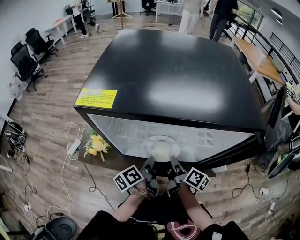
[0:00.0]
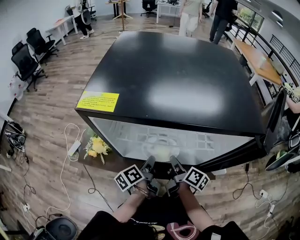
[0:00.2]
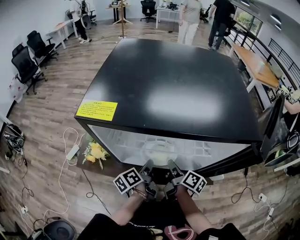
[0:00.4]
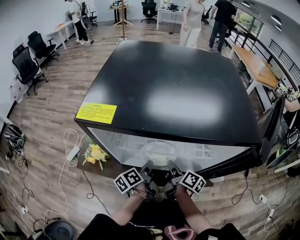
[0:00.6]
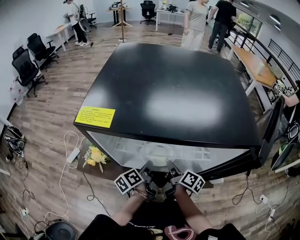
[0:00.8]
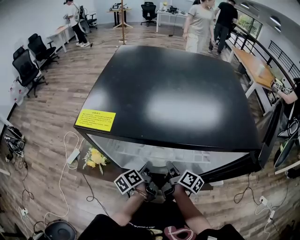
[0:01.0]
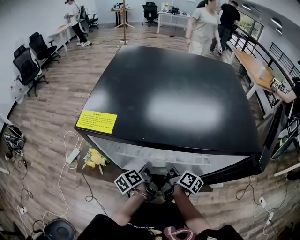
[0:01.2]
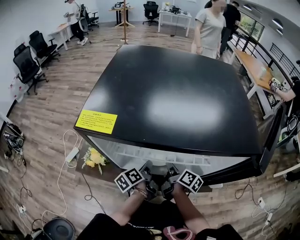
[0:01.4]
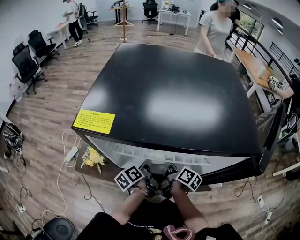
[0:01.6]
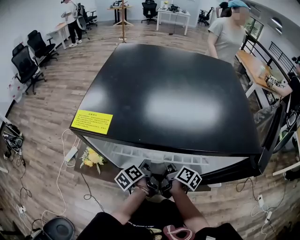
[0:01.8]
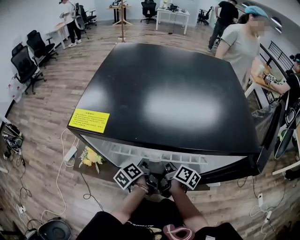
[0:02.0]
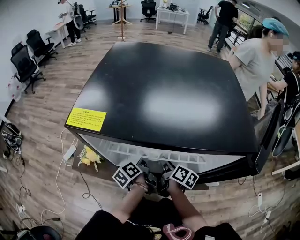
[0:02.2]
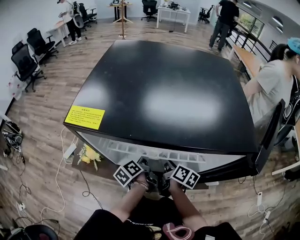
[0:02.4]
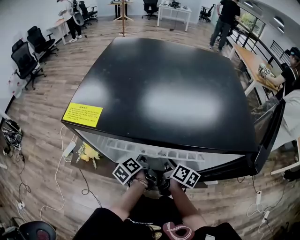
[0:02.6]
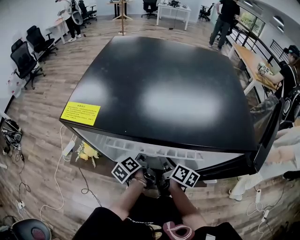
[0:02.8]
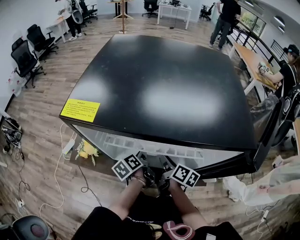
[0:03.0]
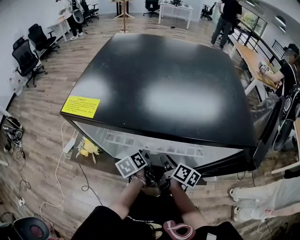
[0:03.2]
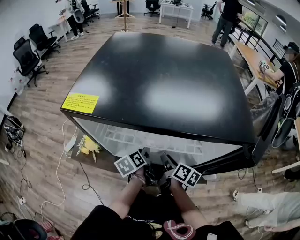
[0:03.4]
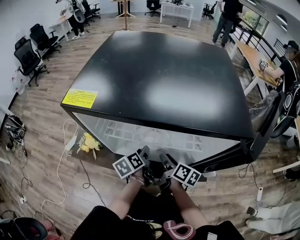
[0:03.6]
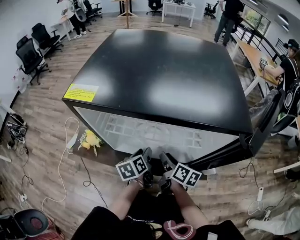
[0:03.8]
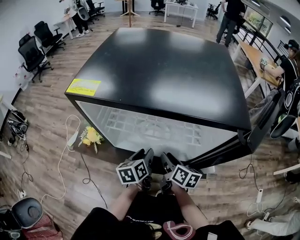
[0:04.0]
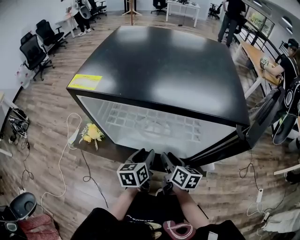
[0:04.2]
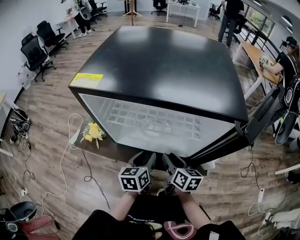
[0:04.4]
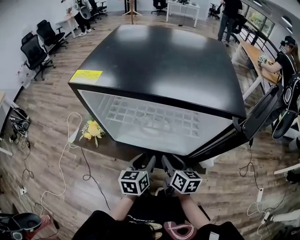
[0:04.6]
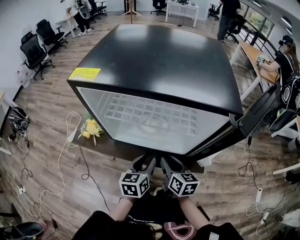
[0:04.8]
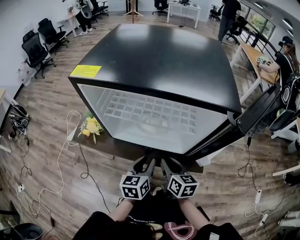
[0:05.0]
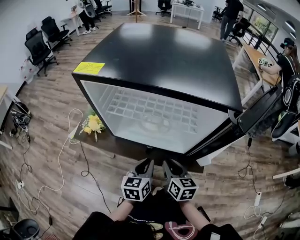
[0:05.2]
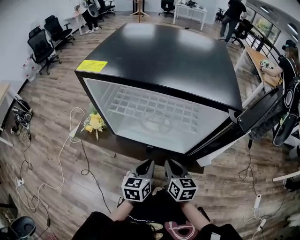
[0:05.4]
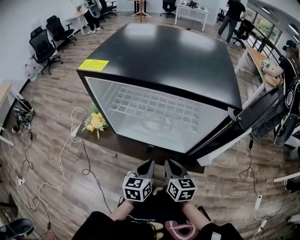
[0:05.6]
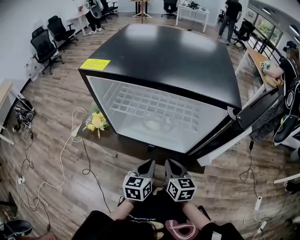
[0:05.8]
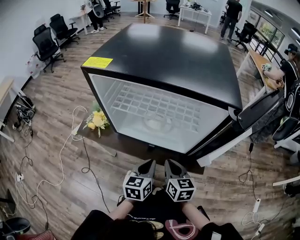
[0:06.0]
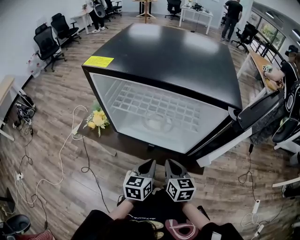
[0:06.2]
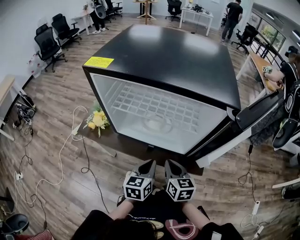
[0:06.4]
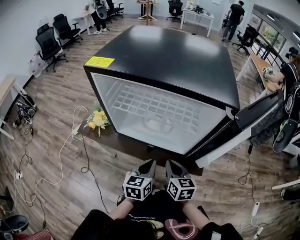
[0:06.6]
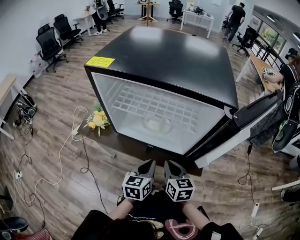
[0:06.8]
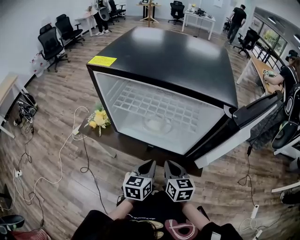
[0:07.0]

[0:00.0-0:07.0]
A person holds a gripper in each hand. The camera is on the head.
0:00.0 to 0:01.4: Both grippers move forward, approximately 5 cm.
0:01.4 to 0:02.8: The right gripper opens up.
0:02.8 to 0:04.2: The right gripper is displaced backward by approximately 5 cm. The left gripper goes about 10 cm backward and upward, rolls clockwise, seen from behind, by some 40 degrees, and opens its fingers.
0:04.2 to 0:05.6: The grippers both shift backward by about 10 cm. The left gripper closes up; the right gripper rotates approximately 20 degrees, and closes.
0:05.6 to 0:07.0: There are only small adjustments of the grippers.

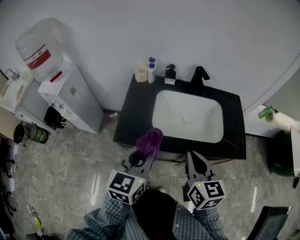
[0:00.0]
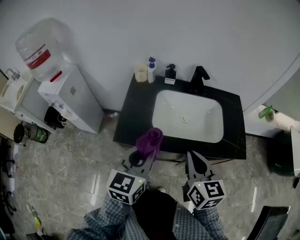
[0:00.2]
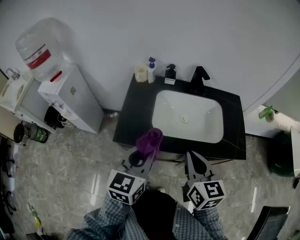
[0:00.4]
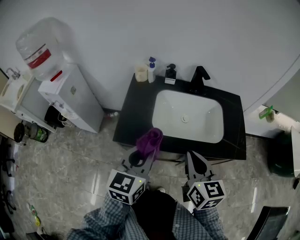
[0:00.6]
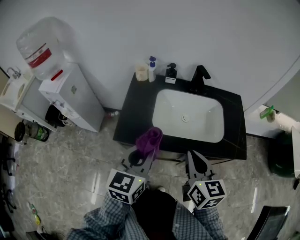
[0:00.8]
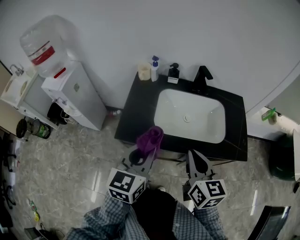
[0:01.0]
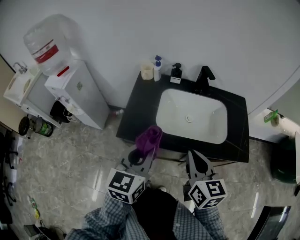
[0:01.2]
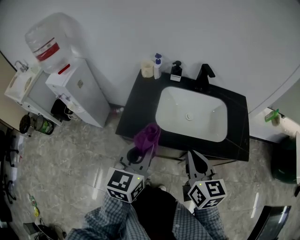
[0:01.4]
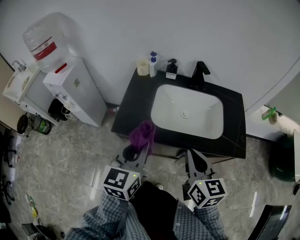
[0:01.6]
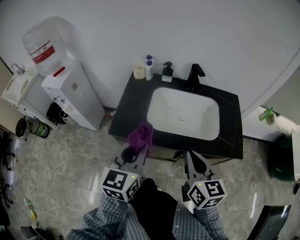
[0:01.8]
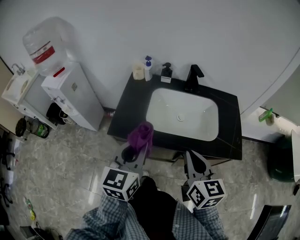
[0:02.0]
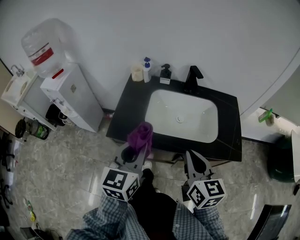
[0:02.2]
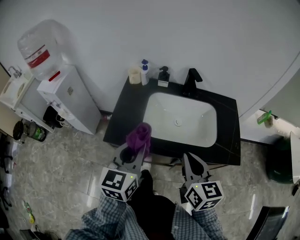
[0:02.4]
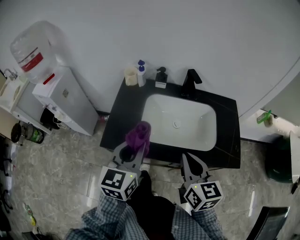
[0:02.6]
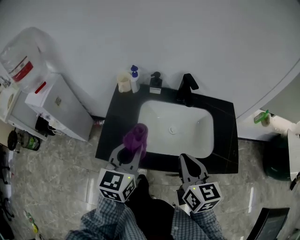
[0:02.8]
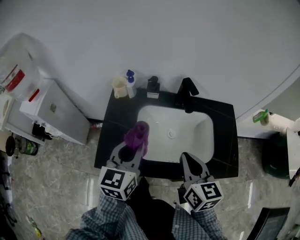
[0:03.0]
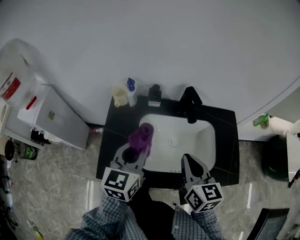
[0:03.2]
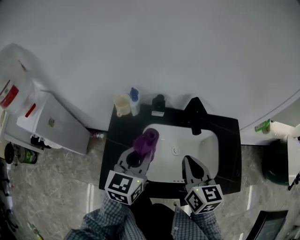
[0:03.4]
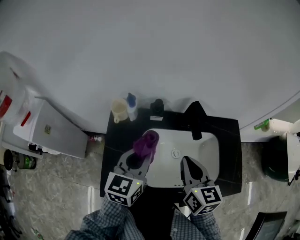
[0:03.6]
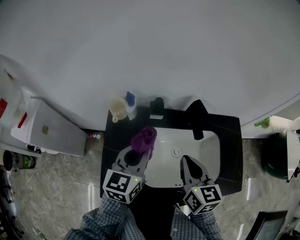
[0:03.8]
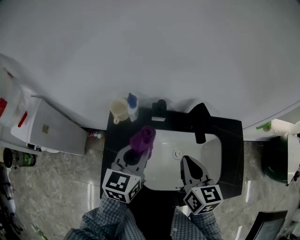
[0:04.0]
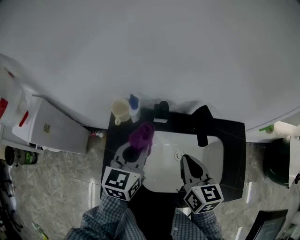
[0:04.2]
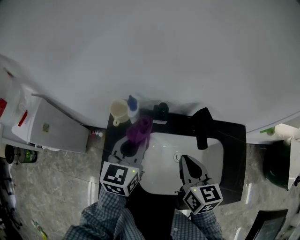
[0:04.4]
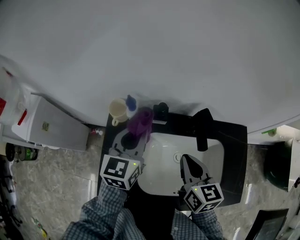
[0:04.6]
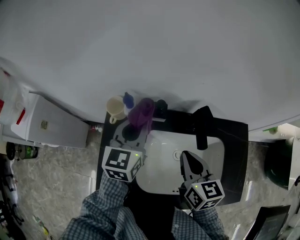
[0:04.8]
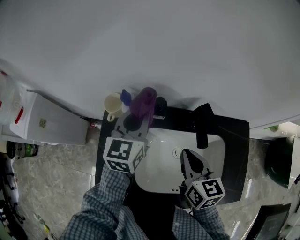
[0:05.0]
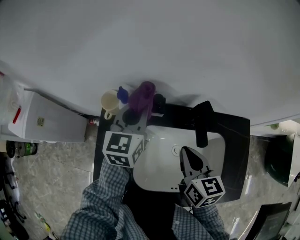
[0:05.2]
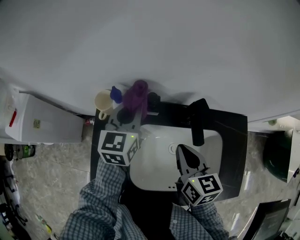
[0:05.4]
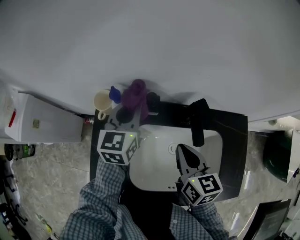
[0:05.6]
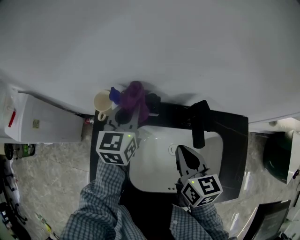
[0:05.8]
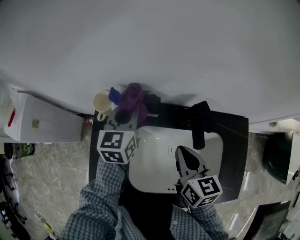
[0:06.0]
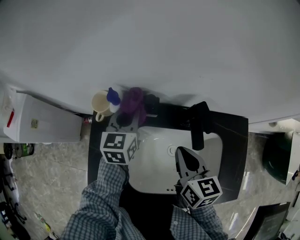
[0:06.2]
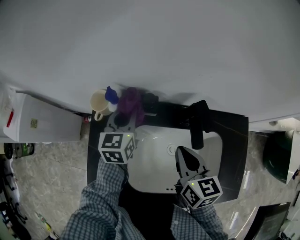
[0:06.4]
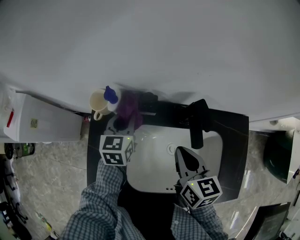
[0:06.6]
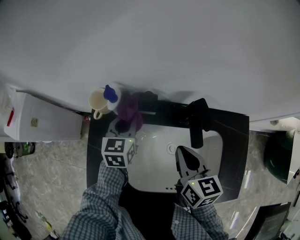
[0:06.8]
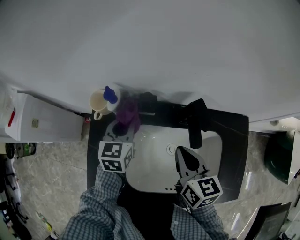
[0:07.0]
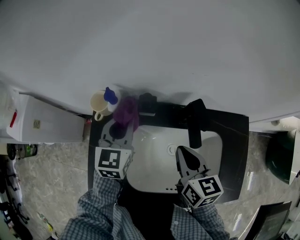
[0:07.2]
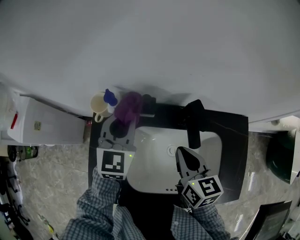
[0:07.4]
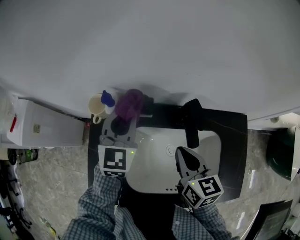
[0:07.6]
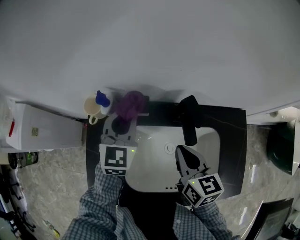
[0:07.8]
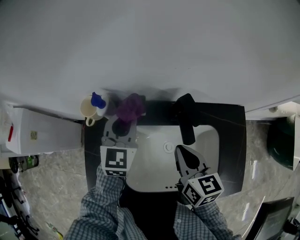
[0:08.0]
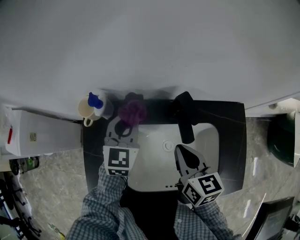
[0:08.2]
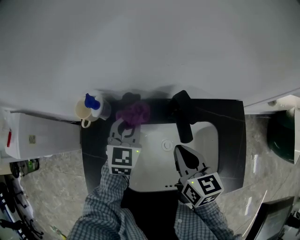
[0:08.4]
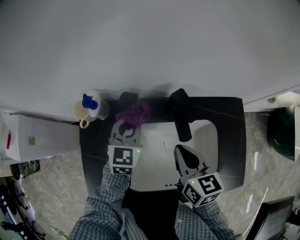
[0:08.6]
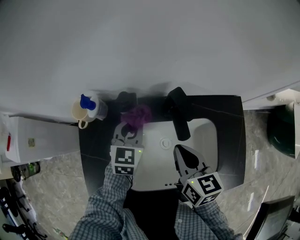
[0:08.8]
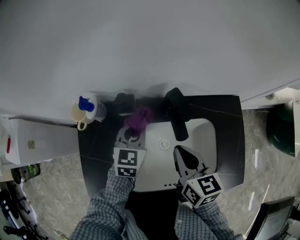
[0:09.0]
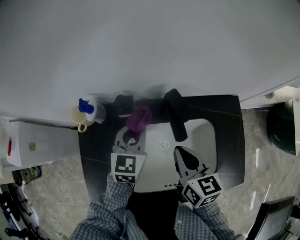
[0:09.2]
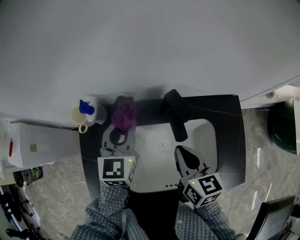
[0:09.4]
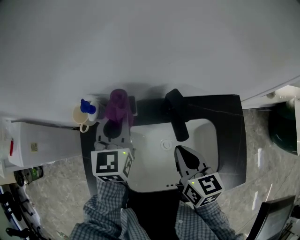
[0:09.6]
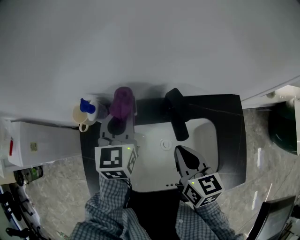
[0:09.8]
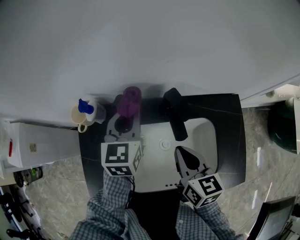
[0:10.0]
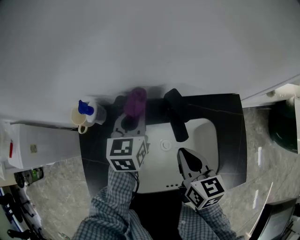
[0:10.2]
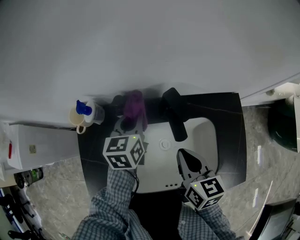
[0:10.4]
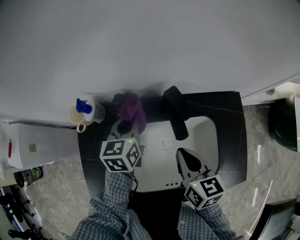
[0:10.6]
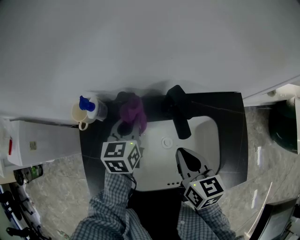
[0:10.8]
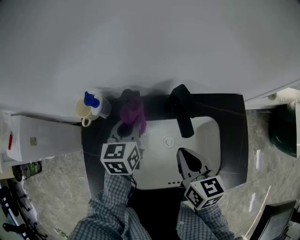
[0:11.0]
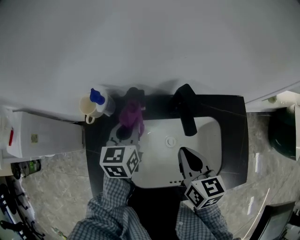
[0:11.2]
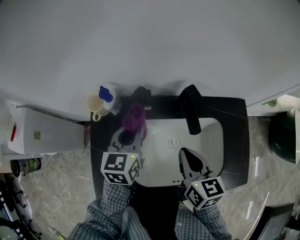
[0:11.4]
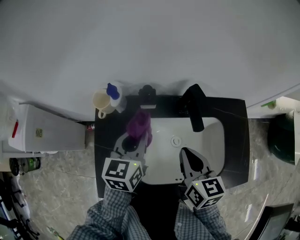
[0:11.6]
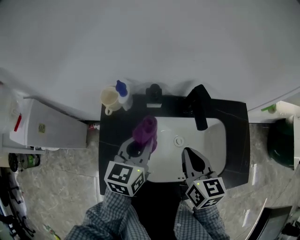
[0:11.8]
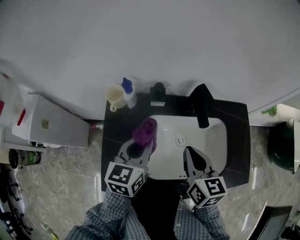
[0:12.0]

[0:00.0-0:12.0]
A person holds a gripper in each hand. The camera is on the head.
0:00.0 to 0:01.6: The grippers make only small movements.
0:01.6 to 0:03.0: Both grippers travel together forward, some 15 cm.
0:03.0 to 0:04.4: The two grippers go approximately 20 cm forward.
0:04.4 to 0:06.0: The right gripper shifts by roughly 5 cm. Meanwhile the left gripper moves forward and downward, some 15 cm.
0:06.0 to 0:07.6: The left gripper moves some 5 cm, and turns by some 20 degrees.
0:07.6 to 0:09.0: The left gripper travels downward and to the right by approximately 15 cm.
0:09.0 to 0:10.4: The left gripper moves approximately 10 cm upward and comes back.
0:10.4 to 0:12.0: The right gripper is displaced to the left and backward by roughly 10 cm. Meanwhile the left gripper shifts roughly 20 cm backward and to the left.

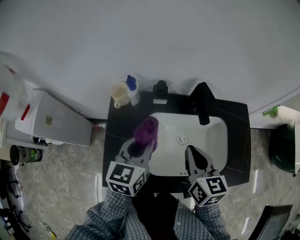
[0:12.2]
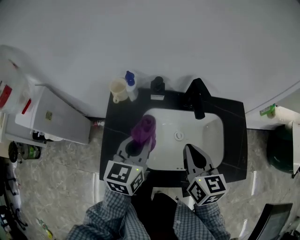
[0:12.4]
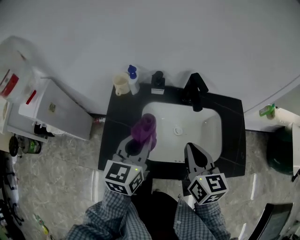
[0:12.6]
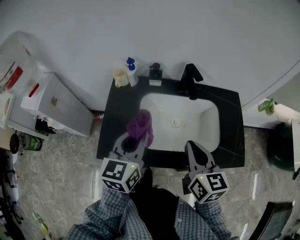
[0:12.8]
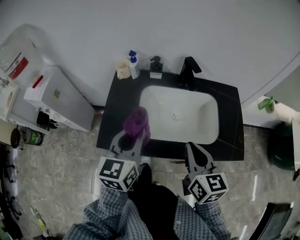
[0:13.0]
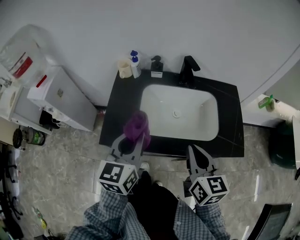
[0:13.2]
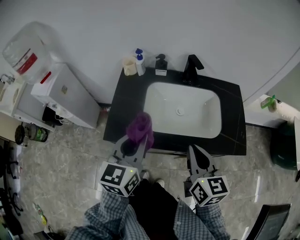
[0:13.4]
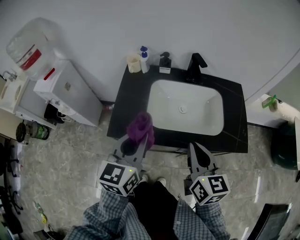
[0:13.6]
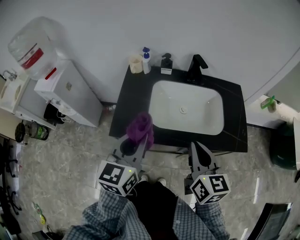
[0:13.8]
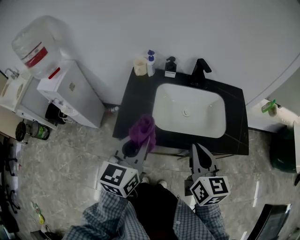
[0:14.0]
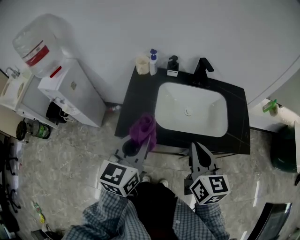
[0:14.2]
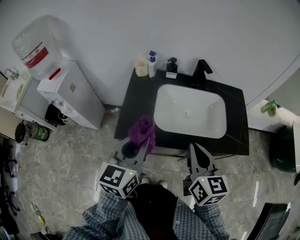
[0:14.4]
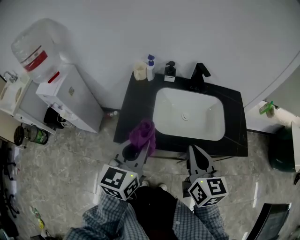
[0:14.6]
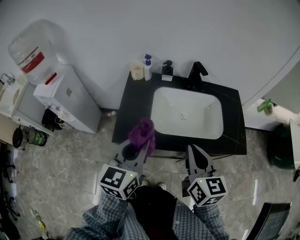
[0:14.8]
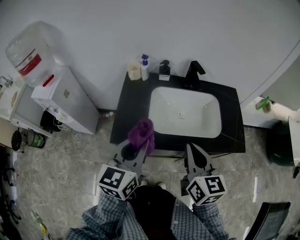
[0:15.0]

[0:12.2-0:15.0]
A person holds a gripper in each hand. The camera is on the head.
0:12.2 to 0:13.6: Both grippers travel together backward, roughly 25 cm.
0:13.6 to 0:15.0: The grippers make only small movements.

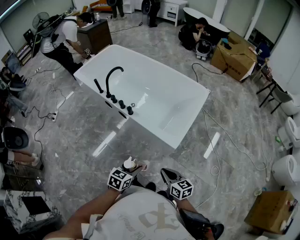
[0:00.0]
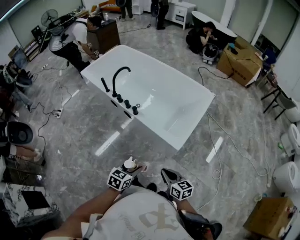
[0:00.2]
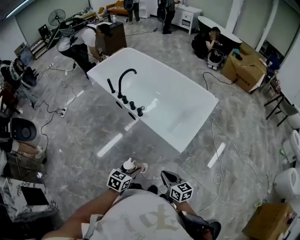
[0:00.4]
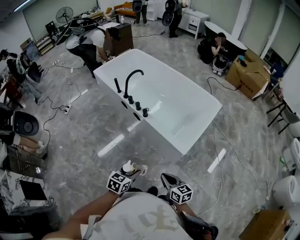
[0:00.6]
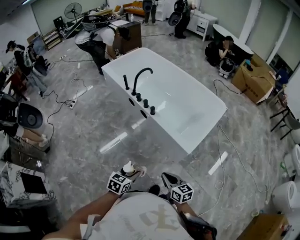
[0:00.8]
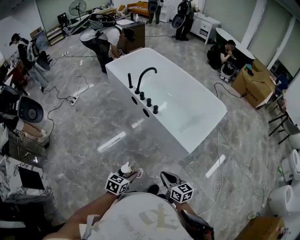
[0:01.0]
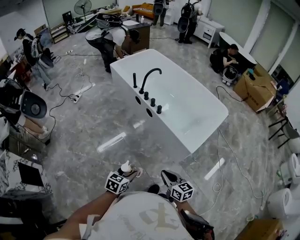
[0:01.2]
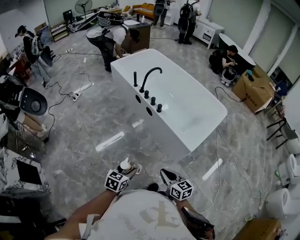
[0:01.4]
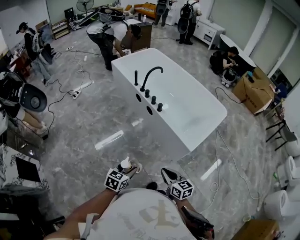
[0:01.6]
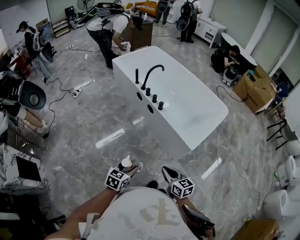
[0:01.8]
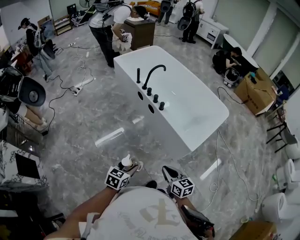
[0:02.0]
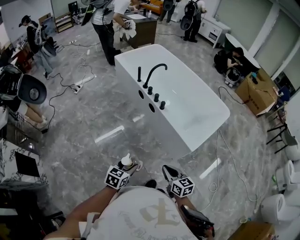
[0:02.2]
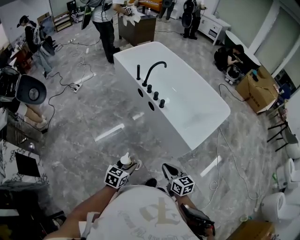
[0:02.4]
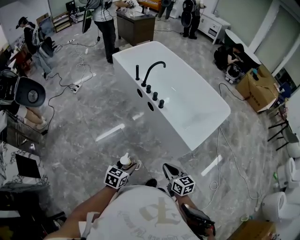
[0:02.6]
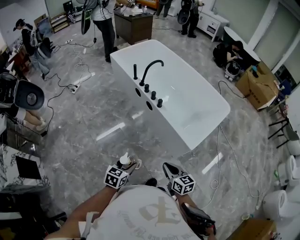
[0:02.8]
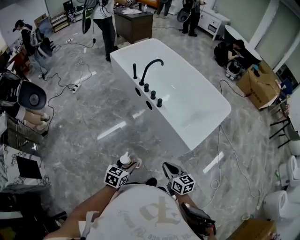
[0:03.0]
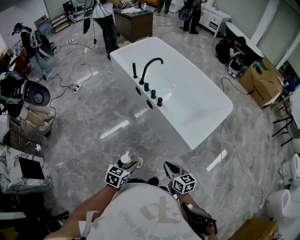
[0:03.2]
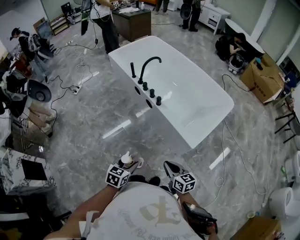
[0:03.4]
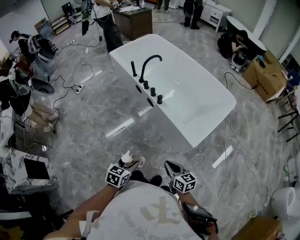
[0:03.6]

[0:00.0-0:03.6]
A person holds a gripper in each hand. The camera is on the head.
0:00.0 to 0:01.8: The two grippers go approximately 20 cm to the left and backward.
0:01.8 to 0:03.6: Both grippers move forward and to the right, roughly 10 cm.
